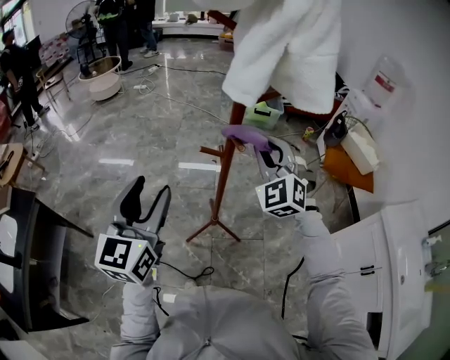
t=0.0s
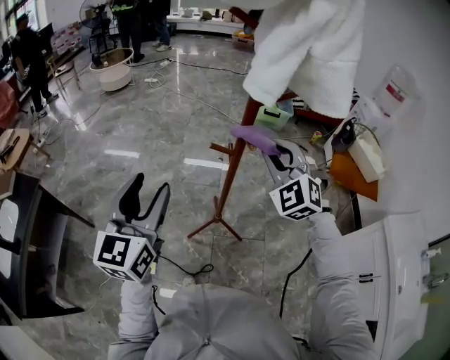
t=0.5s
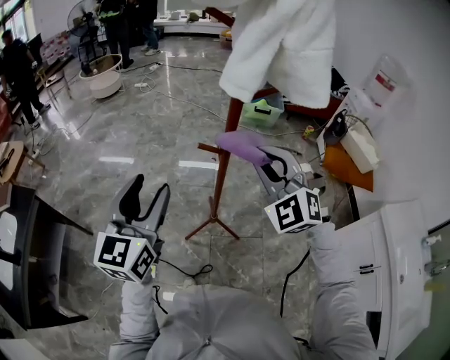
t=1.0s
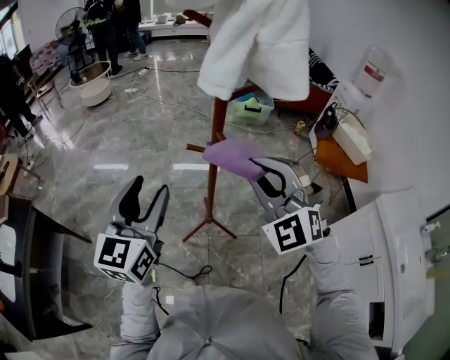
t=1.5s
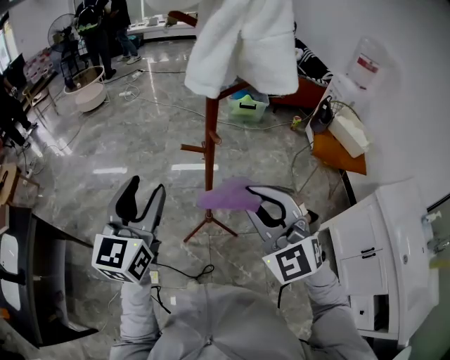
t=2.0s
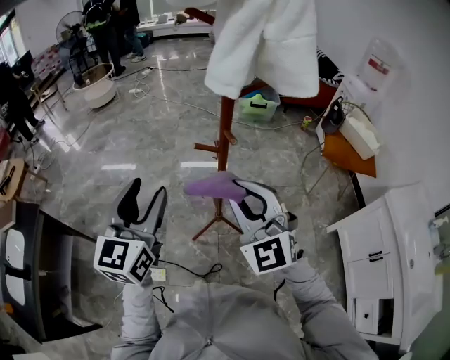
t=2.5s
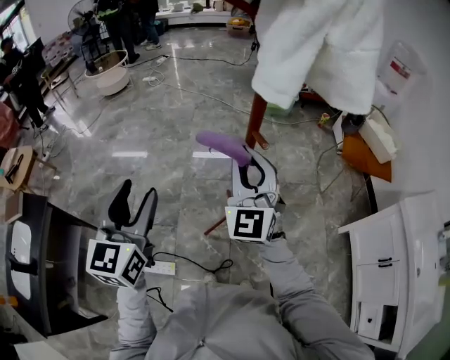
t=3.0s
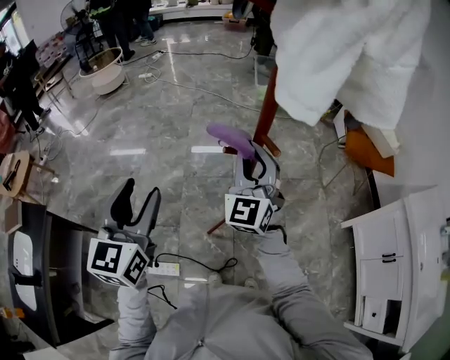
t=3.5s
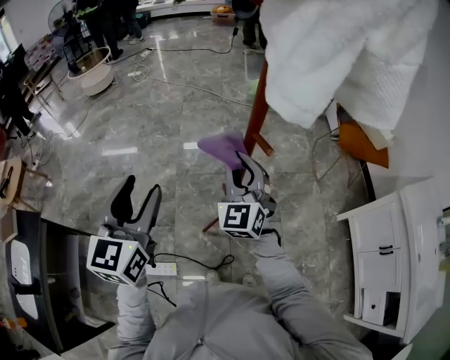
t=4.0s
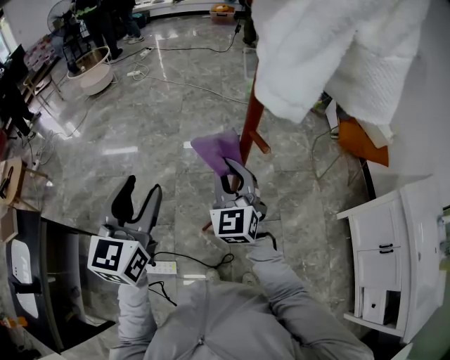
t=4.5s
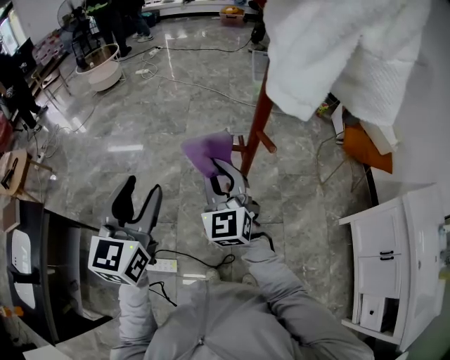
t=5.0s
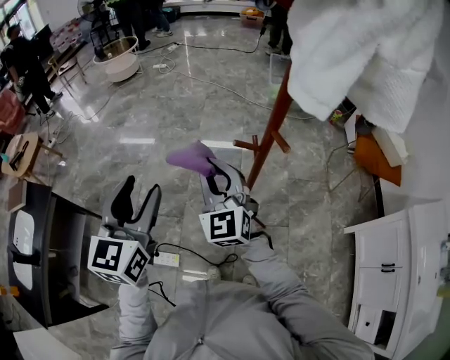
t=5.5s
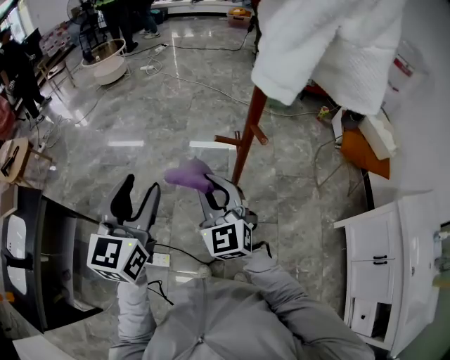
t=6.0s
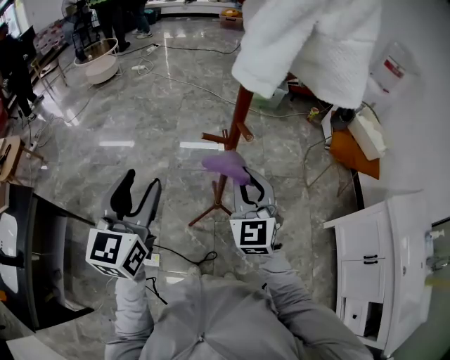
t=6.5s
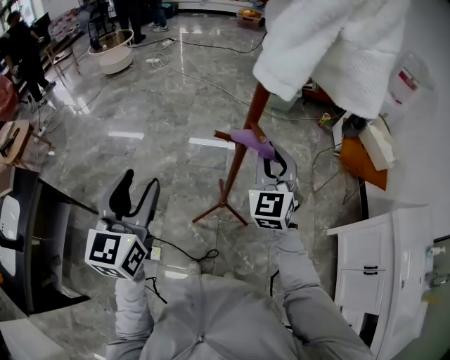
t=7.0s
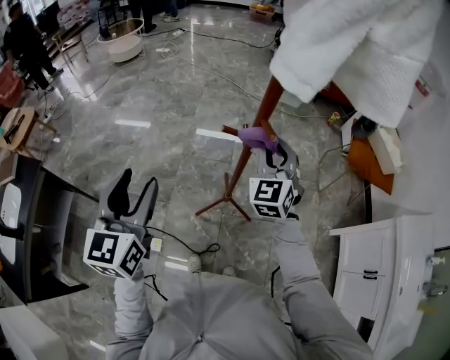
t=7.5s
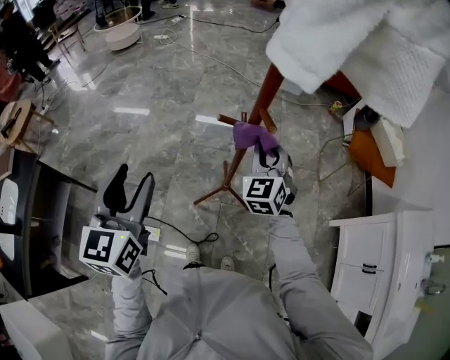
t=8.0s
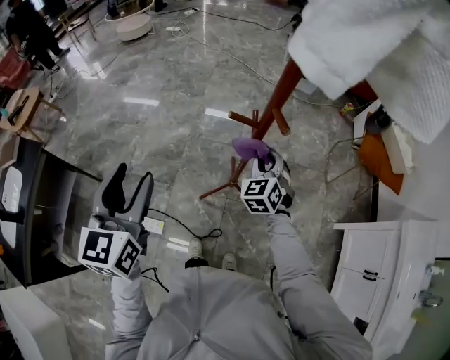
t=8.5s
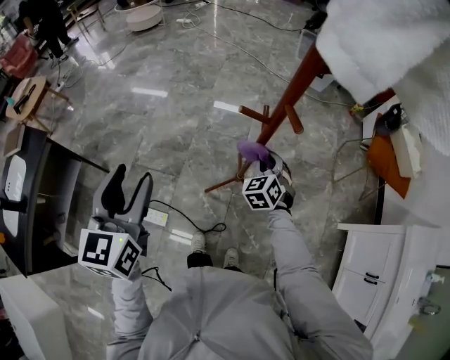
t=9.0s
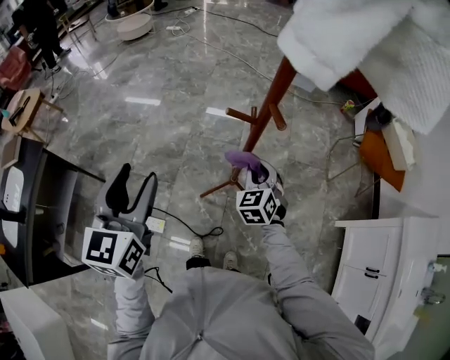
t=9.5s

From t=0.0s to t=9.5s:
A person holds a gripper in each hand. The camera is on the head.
From t=0.0s to t=2.0s: The right gripper travels backward by some 20 cm.
From t=2.0s to t=4.0s: The right gripper travels forward, downward and to the left by roughly 25 cm, and turns by roughly 30 degrees; the left gripper goes roughly 10 cm to the left and forward.
From t=4.0s to t=5.5s: The right gripper goes approximately 10 cm to the left, and swivels about 20 degrees; the left gripper ends up about 5 cm from where it was.
From t=5.5s to t=7.5s: The right gripper heads to the right, covering approximately 20 cm, and turns by approximately 20 degrees.
From t=7.5s to t=9.5s: The right gripper shifts about 20 cm downward, and changes its angle by roughly 20 degrees.

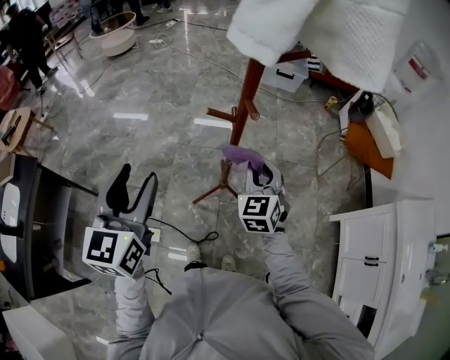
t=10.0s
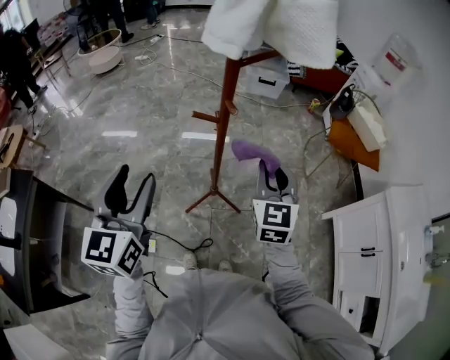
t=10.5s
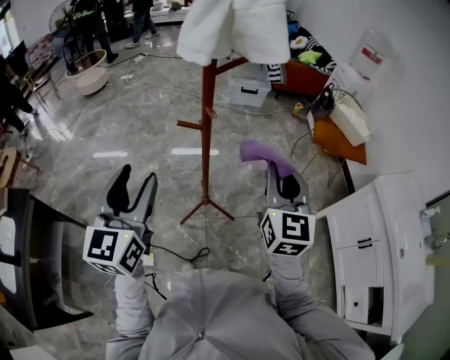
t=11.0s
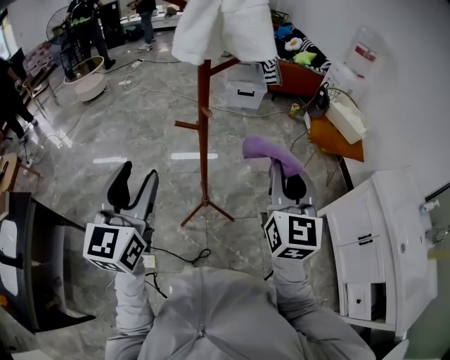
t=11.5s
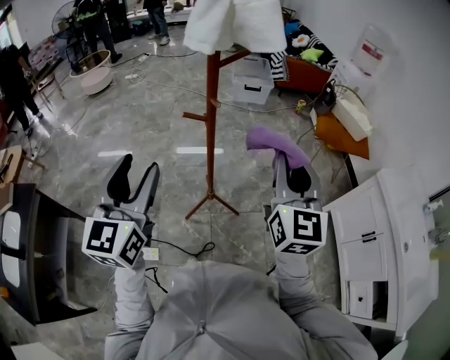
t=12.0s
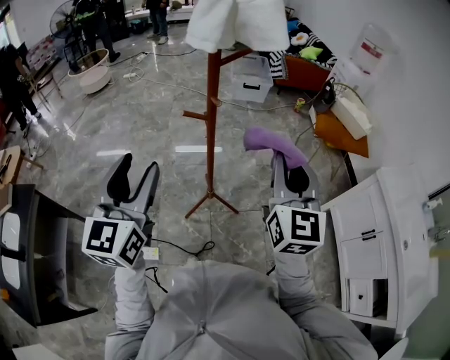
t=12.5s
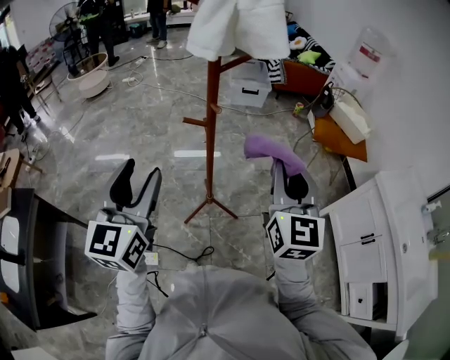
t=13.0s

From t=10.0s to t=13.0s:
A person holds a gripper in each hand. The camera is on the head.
From t=10.0s to t=11.5s: The left gripper is displaced to the right and upward by about 10 cm. The right gripper shifts approximately 30 cm upward, backward and to the right, and rotates approximately 30 degrees.
From t=11.5s to t=13.0s: The grippers stay close to where they were, moving slightly.

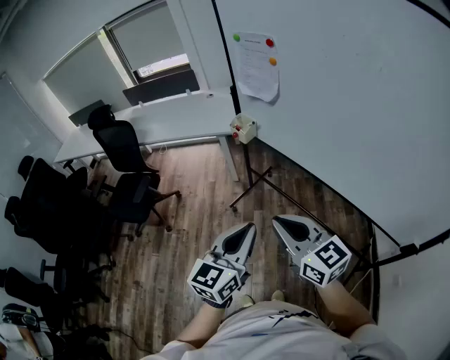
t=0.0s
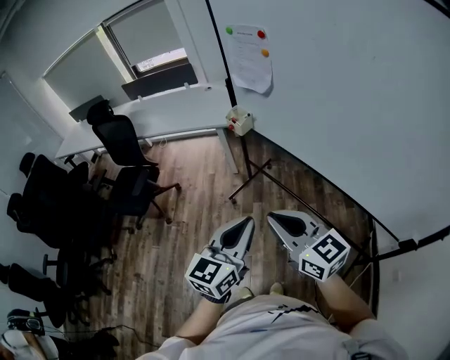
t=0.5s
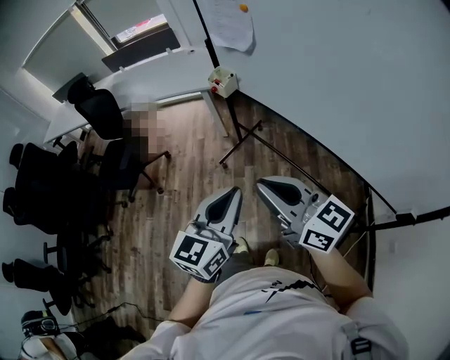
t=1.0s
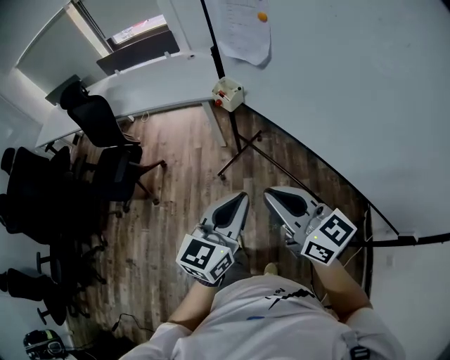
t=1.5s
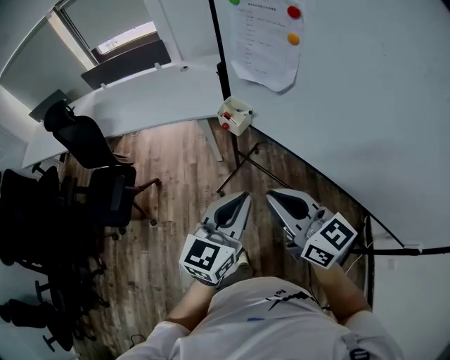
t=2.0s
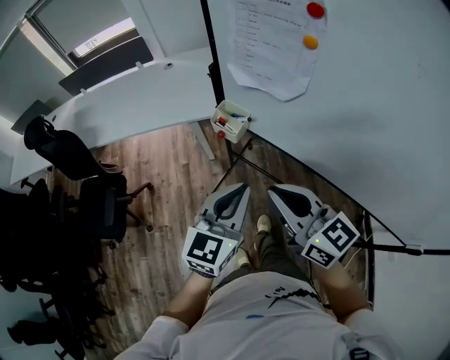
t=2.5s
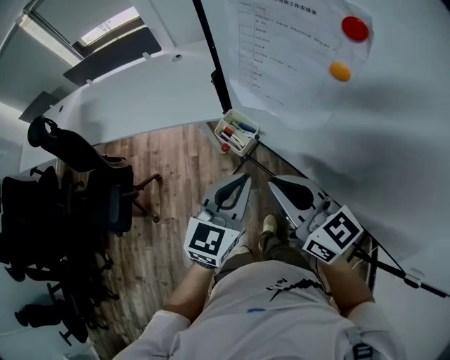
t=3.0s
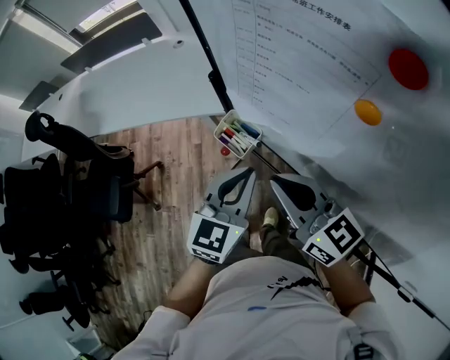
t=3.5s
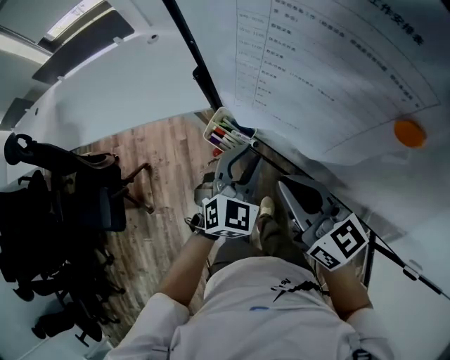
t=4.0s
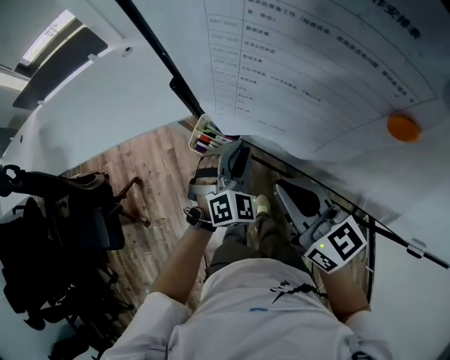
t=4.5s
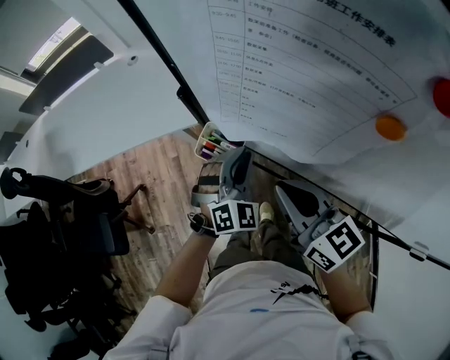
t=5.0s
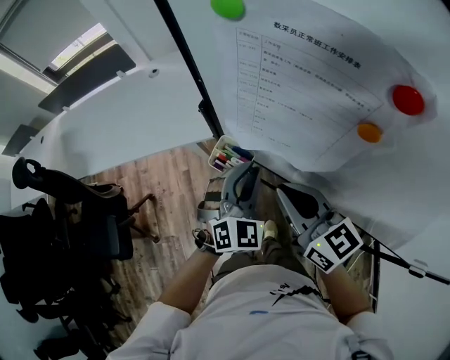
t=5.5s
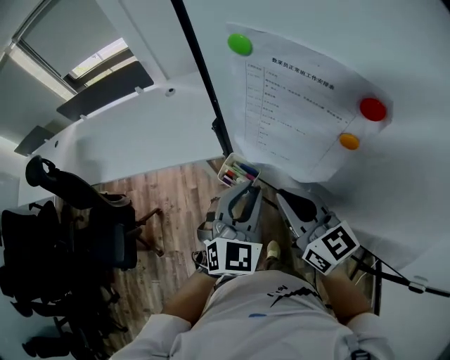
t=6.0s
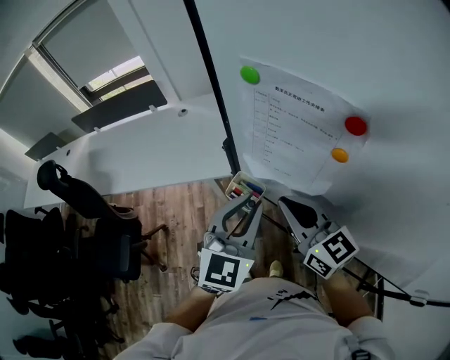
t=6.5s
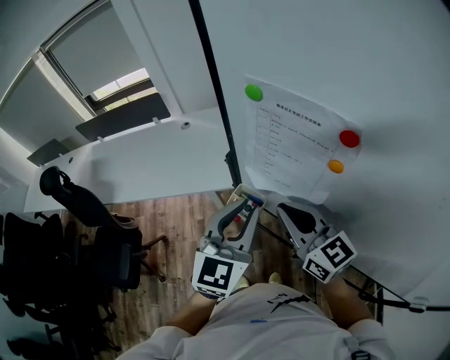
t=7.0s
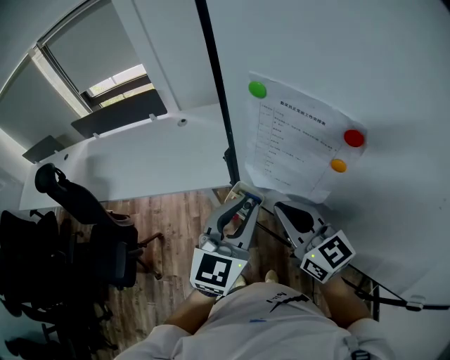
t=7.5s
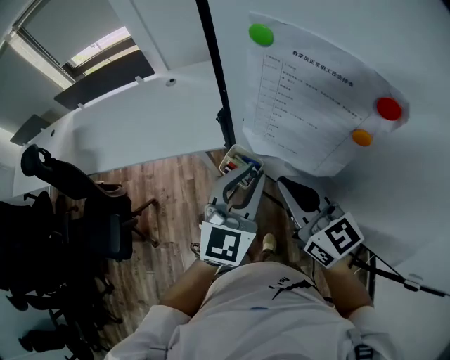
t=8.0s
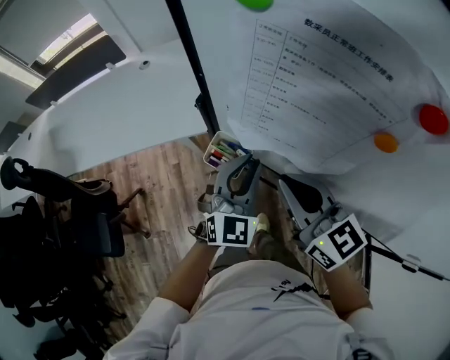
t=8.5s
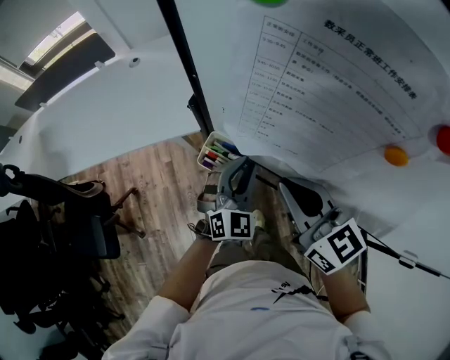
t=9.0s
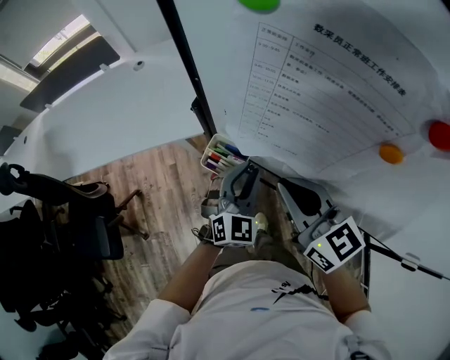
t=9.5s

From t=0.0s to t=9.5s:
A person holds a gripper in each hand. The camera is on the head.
From t=0.0s to t=2.0s: Both grippers move forward, some 25 cm.
From t=2.0s to t=4.0s: The right gripper travels forward by some 30 cm. Meanwhile the left gripper goes some 35 cm forward and downward, turns by approximately 40 degrees, and opens.
From t=4.0s to t=5.5s: The left gripper heads upward, covering about 5 cm.
From t=5.5s to t=7.5s: The left gripper shifts about 15 cm upward, and rotates about 30 degrees; the right gripper travels upward by about 10 cm.
From t=7.5s to t=9.5s: The right gripper moves downward, roughly 10 cm; the left gripper travels downward by some 25 cm, and rotates approximately 20 degrees.

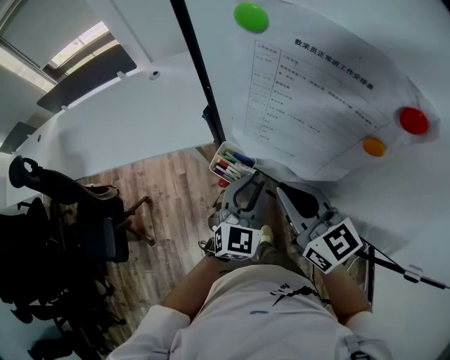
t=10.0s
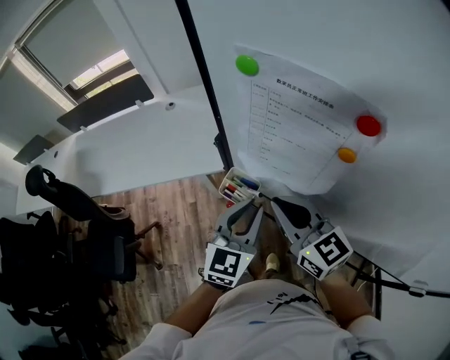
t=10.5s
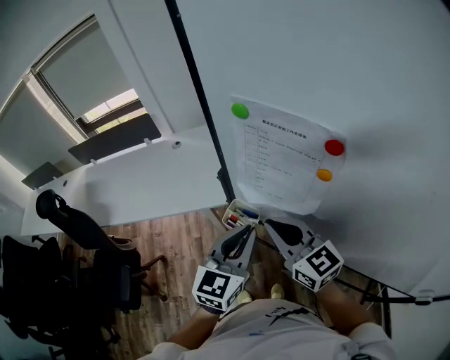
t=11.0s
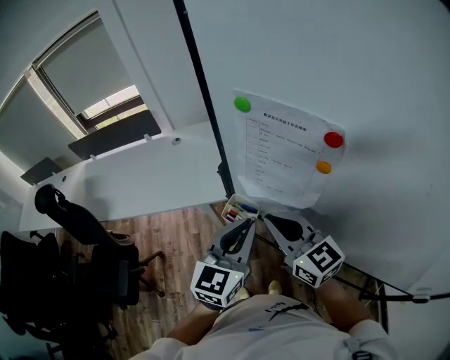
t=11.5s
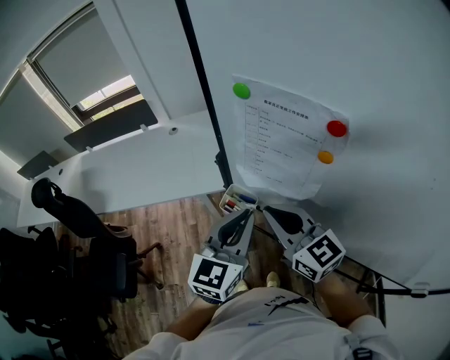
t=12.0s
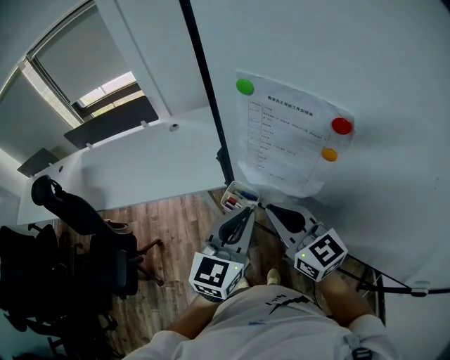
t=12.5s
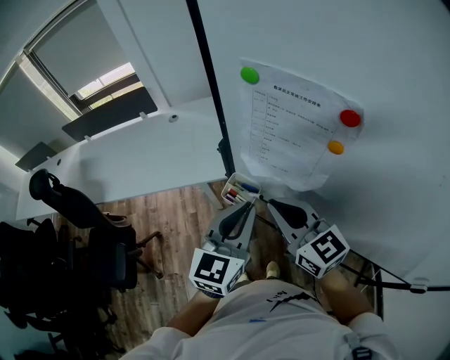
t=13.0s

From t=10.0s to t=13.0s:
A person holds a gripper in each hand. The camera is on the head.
From t=10.0s to t=11.5s: The left gripper is displaced upward by roughly 15 cm. Meanwhile the right gripper heads upward, covering about 5 cm.
From t=11.5s to t=13.0s: The grippers make only small movements.

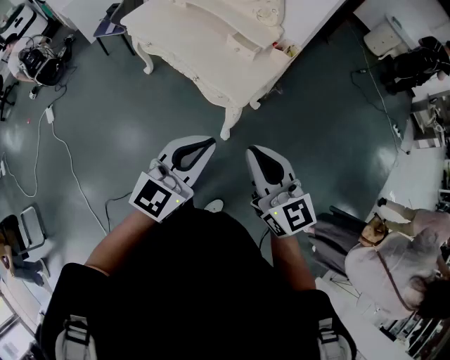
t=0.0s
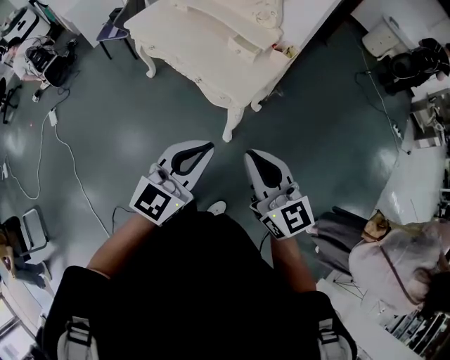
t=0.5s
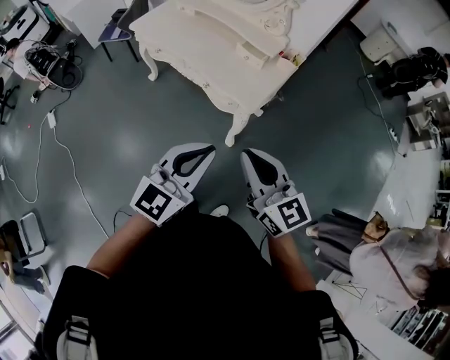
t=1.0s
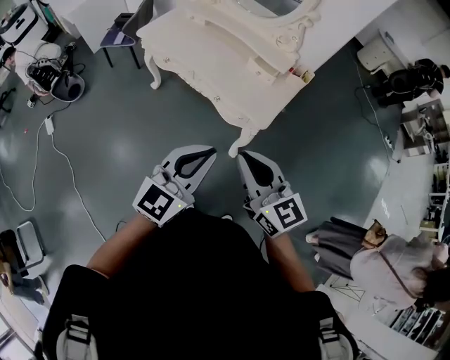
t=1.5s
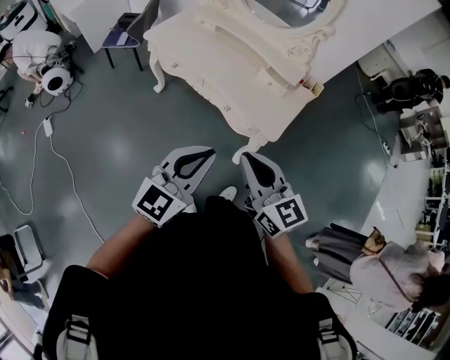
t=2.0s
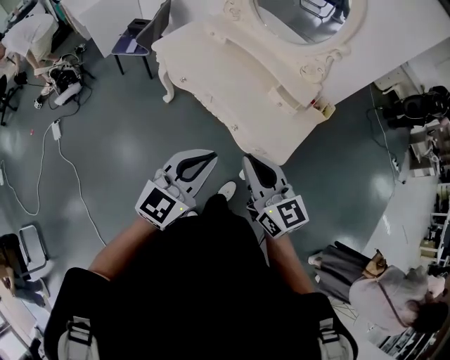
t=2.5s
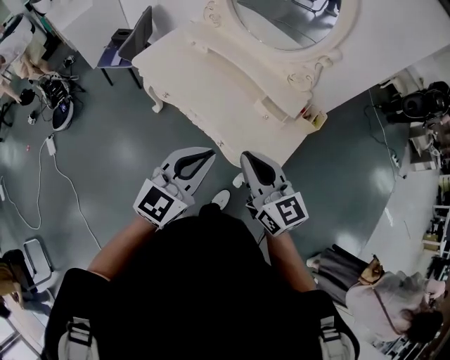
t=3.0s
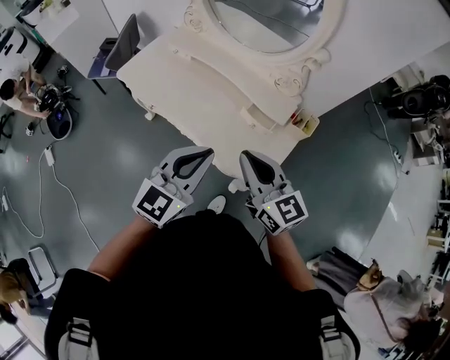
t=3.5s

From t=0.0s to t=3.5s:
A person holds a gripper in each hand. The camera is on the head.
From t=0.0s to t=2.0s: Both grippers move to the left, approximately 20 cm.
From t=2.0s to t=3.5s: Both grippers move forward, about 30 cm.
